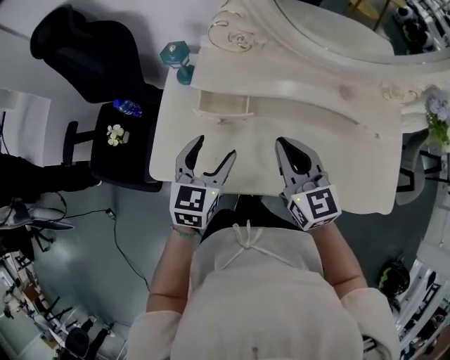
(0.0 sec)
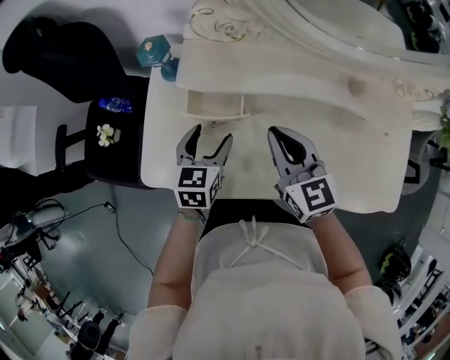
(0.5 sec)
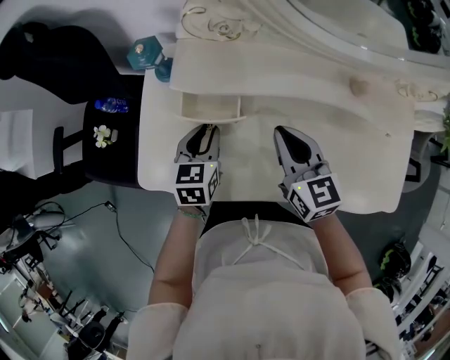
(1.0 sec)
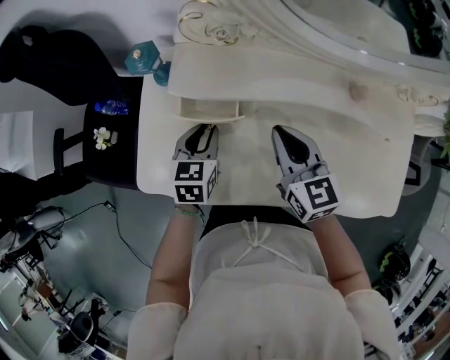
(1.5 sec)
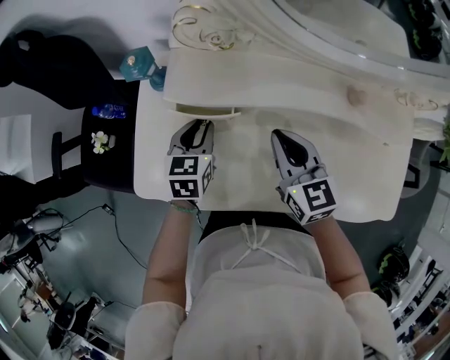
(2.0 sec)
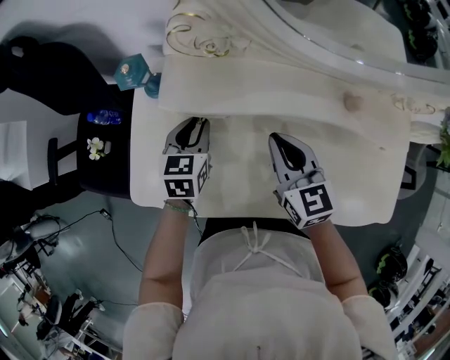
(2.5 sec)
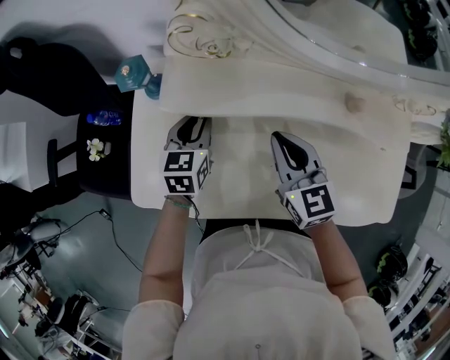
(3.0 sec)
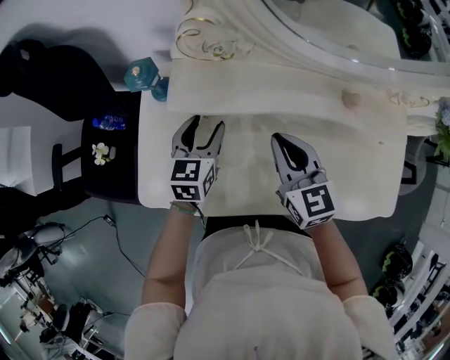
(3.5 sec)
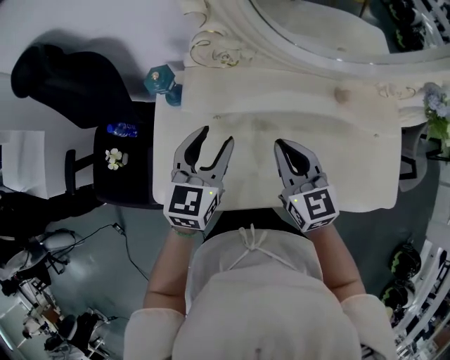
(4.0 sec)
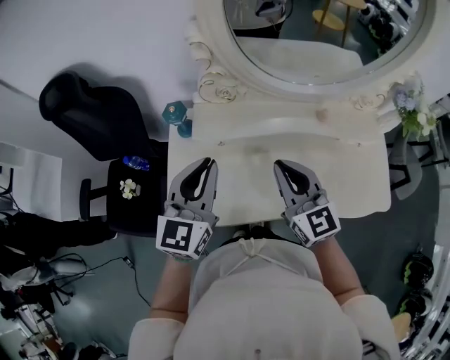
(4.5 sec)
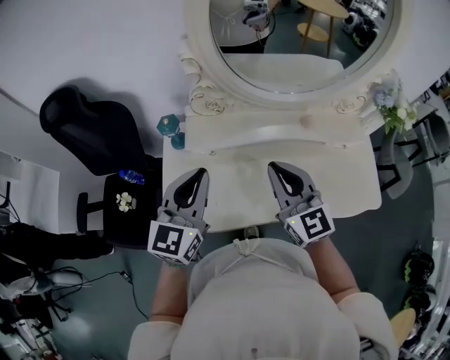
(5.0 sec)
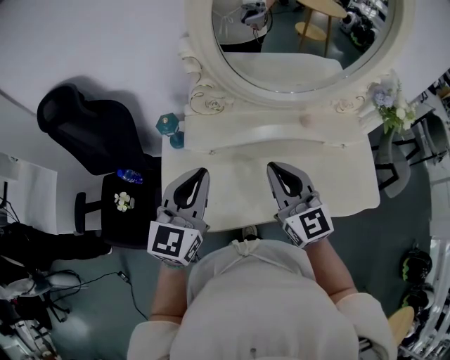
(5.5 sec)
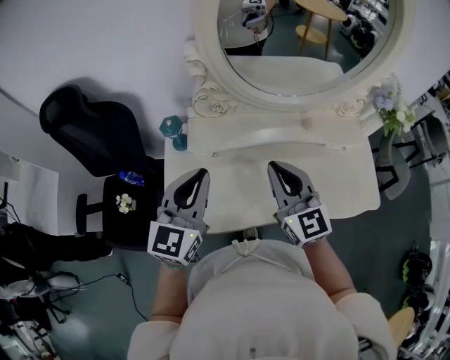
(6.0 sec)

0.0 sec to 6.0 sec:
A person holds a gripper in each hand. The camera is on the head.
0.0 sec to 2.0 sec: The left gripper is displaced forward and downward by about 15 cm, and closes. Meanwhile the right gripper travels downward and forward by some 10 cm.
2.0 sec to 4.0 sec: The left gripper travels upward by about 15 cm, turns by approximately 20 degrees, and opens up; the right gripper moves upward, about 5 cm.
4.0 sec to 6.0 sec: The left gripper goes about 20 cm upward and backward, and closes its fingers. The right gripper travels upward by roughly 15 cm.

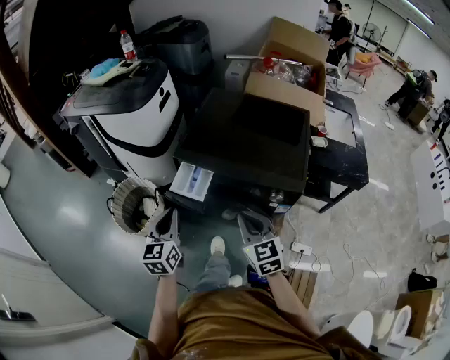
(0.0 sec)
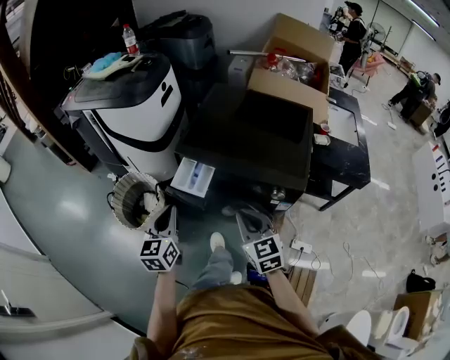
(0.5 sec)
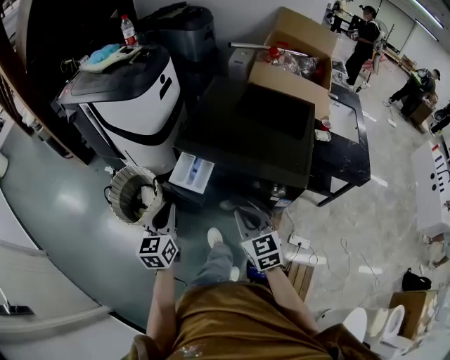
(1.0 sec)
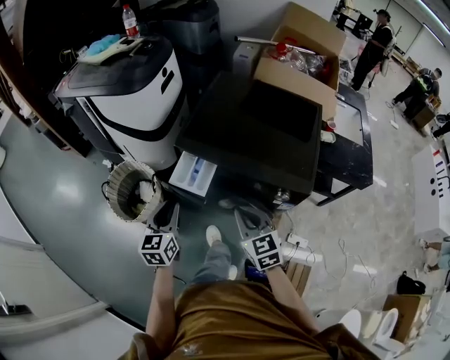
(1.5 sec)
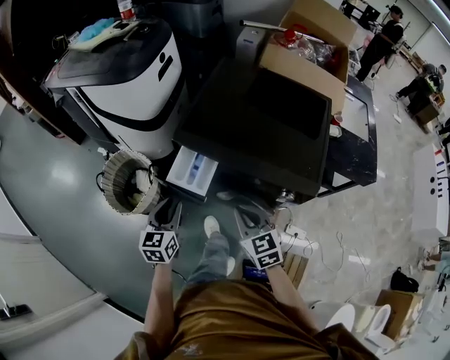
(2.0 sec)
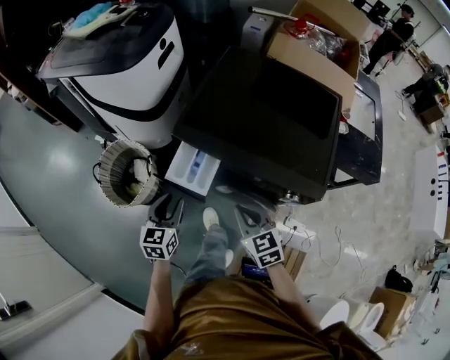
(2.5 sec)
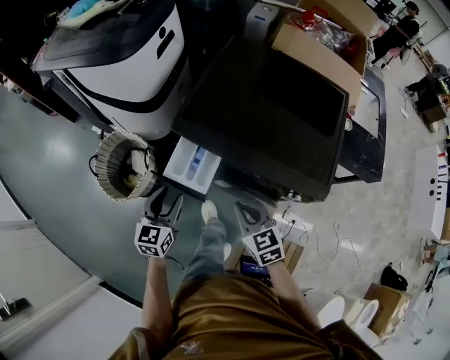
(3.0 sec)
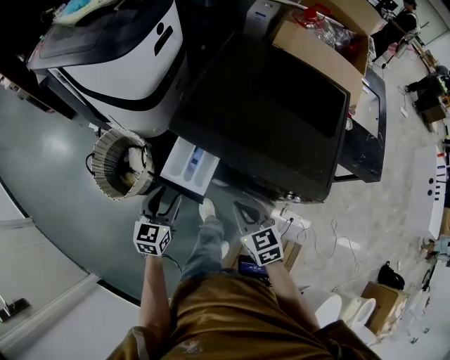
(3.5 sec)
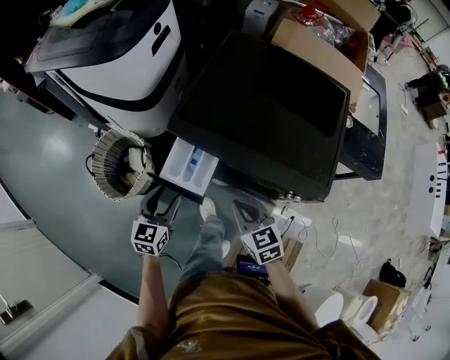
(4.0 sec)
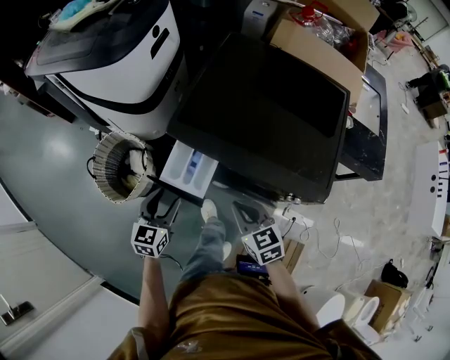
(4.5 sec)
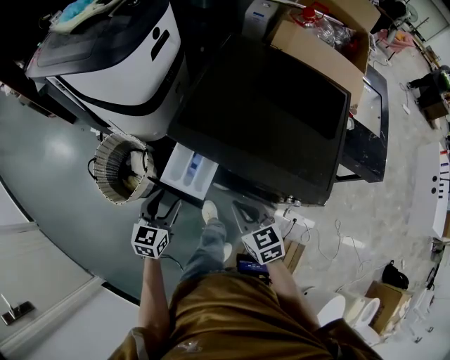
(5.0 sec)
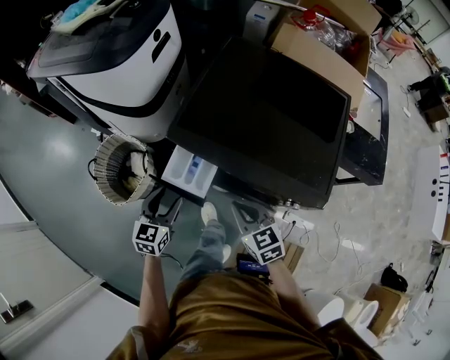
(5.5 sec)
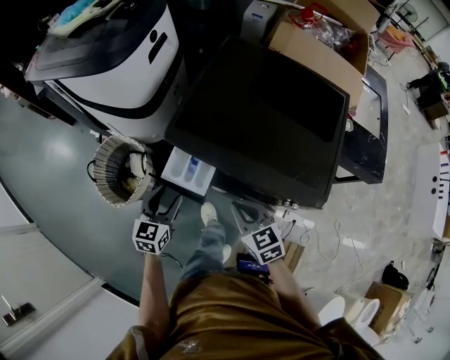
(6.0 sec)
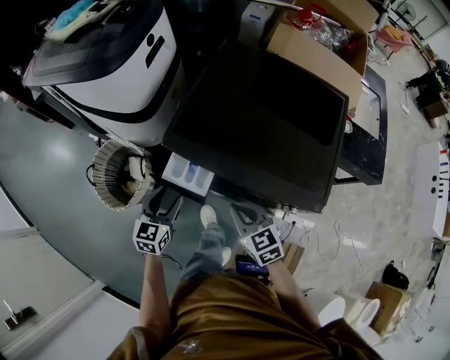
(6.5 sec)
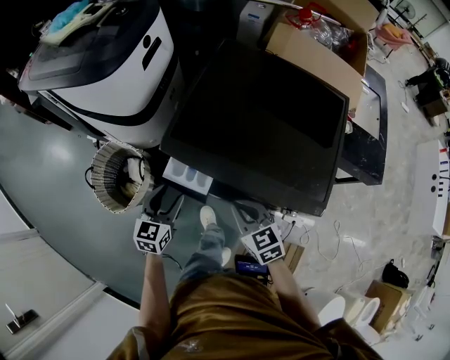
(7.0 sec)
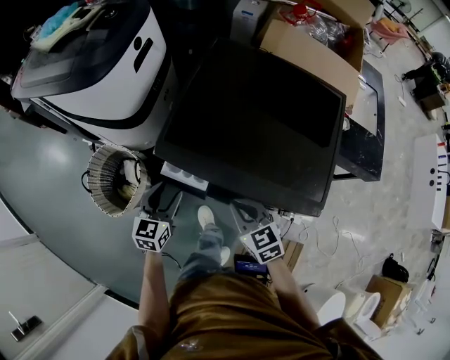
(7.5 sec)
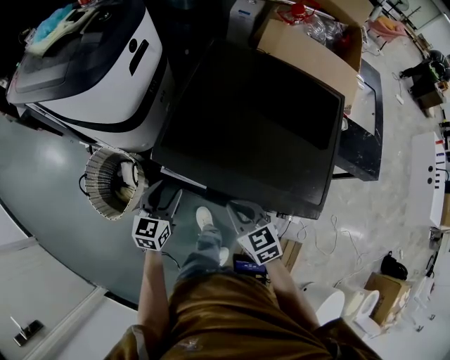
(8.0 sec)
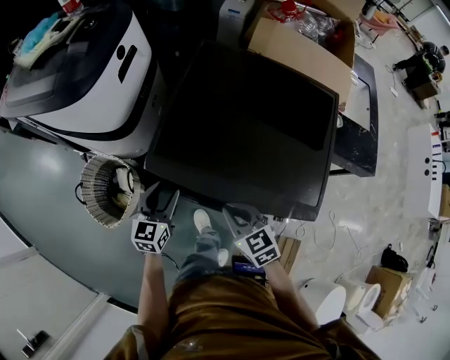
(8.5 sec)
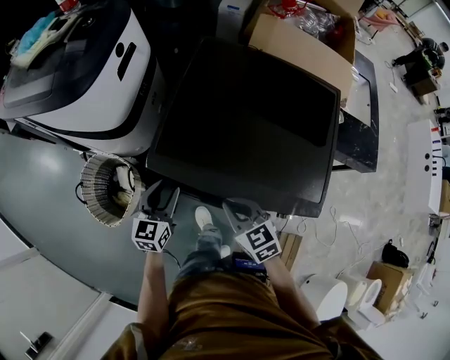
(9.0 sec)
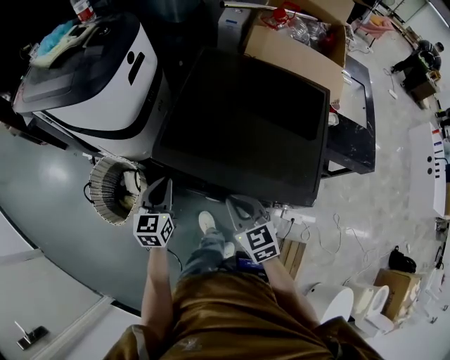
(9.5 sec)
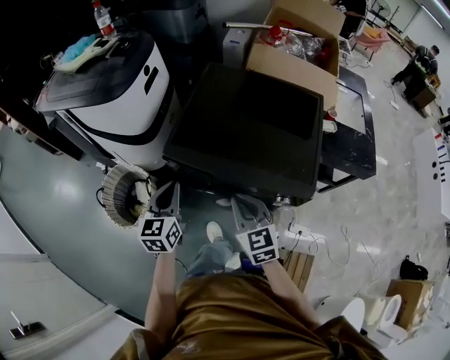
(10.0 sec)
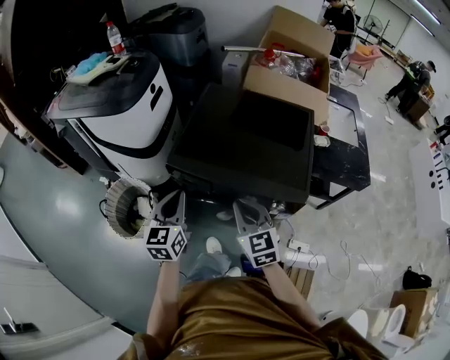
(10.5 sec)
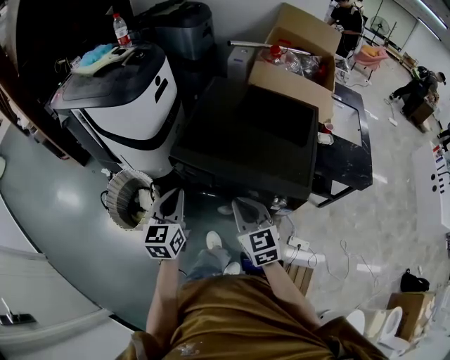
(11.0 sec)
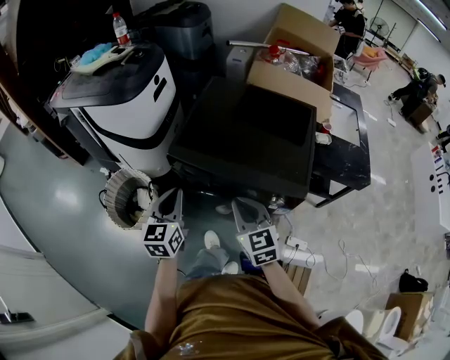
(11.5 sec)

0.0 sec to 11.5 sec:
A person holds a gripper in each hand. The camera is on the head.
0.0 sec to 2.0 sec: Both grippers travel together downward and forward, approximately 10 cm. The left gripper opens its fingers.
2.0 sec to 4.0 sec: The grippers both shift downward by some 5 cm. The left gripper opens.
4.0 sec to 6.0 sec: The grippers stay close to where they were, moving slightly.
6.0 sec to 7.5 sec: The left gripper heads forward, covering about 5 cm.
7.5 sec to 9.5 sec: Both grippers travel together upward, approximately 5 cm. The left gripper closes.
9.5 sec to 11.5 sec: The grippers both shift backward and upward by some 15 cm.

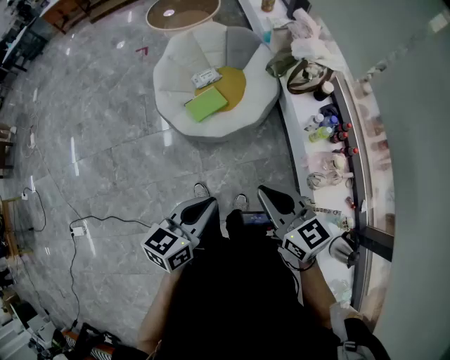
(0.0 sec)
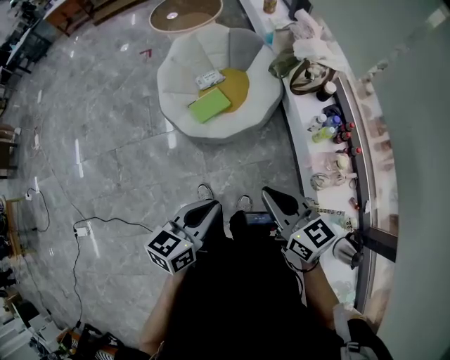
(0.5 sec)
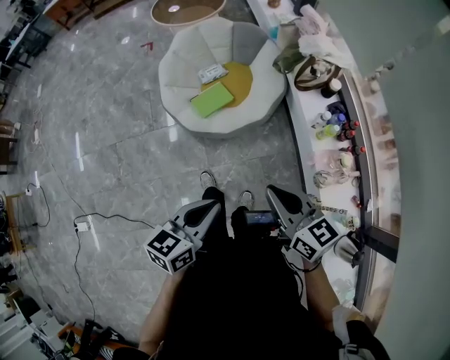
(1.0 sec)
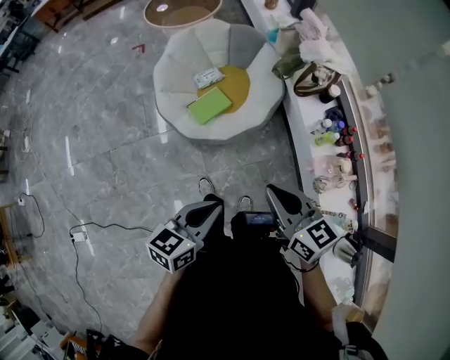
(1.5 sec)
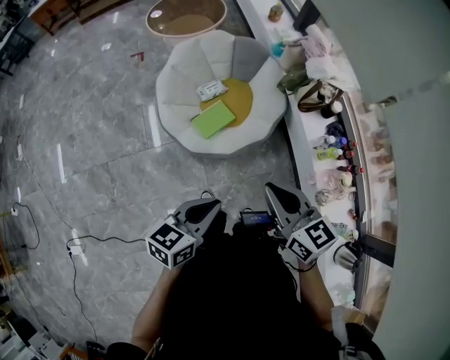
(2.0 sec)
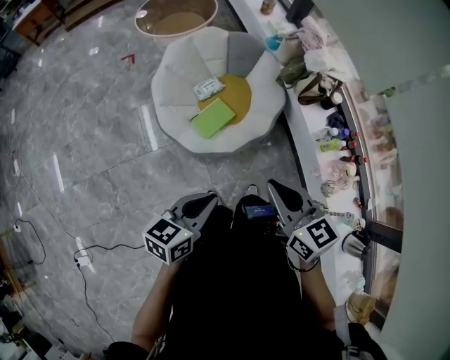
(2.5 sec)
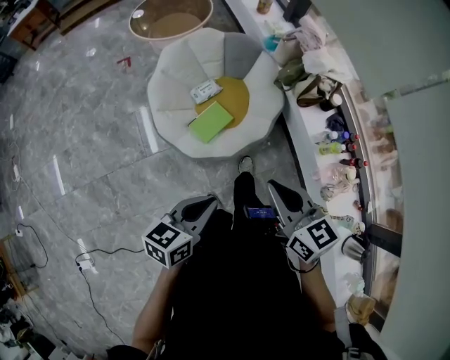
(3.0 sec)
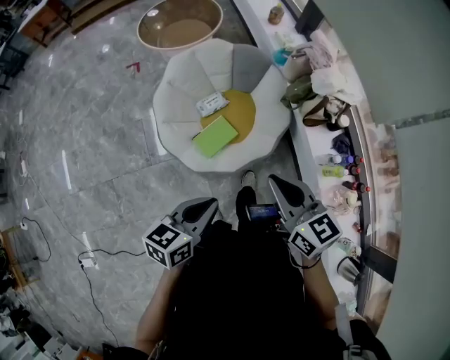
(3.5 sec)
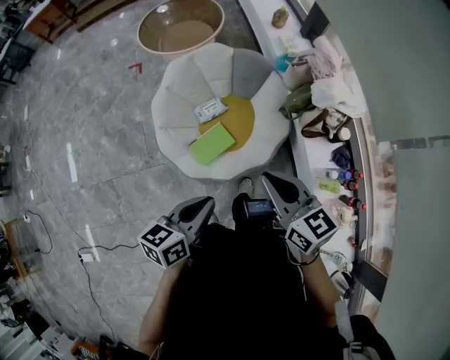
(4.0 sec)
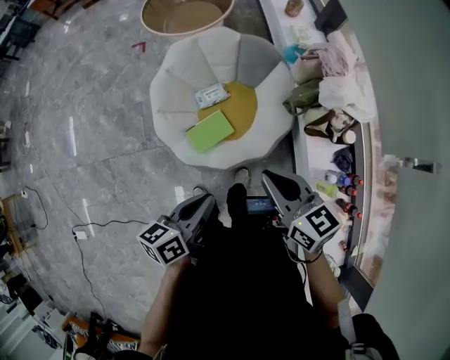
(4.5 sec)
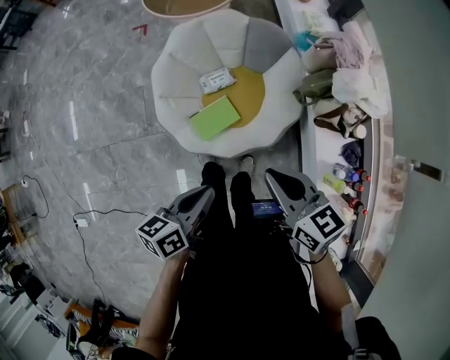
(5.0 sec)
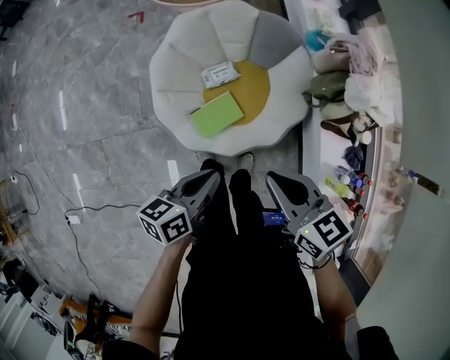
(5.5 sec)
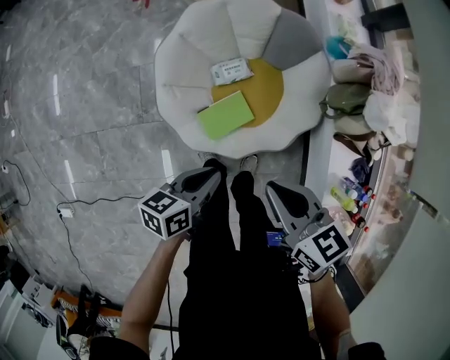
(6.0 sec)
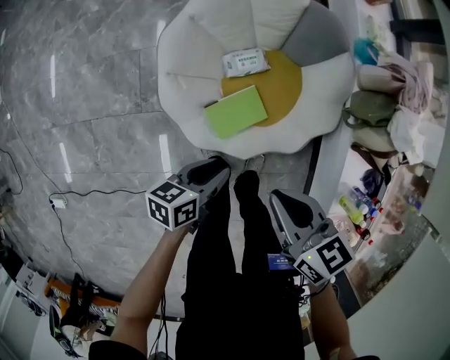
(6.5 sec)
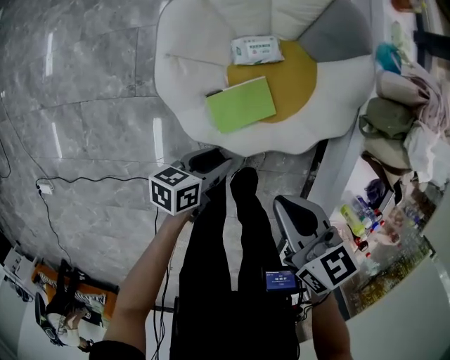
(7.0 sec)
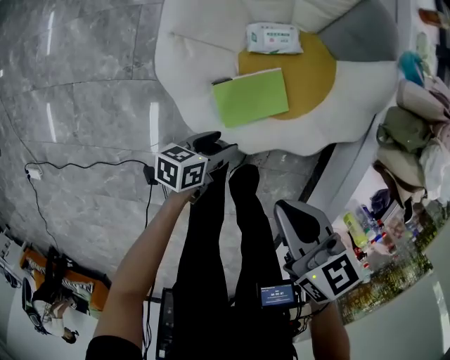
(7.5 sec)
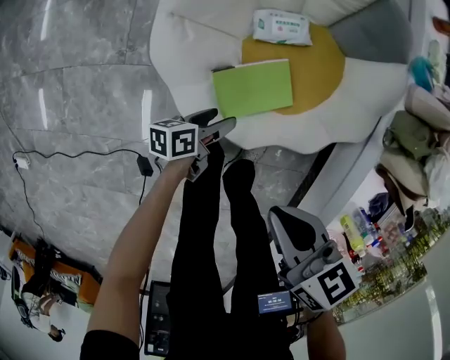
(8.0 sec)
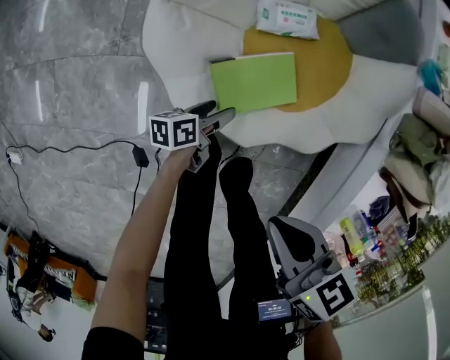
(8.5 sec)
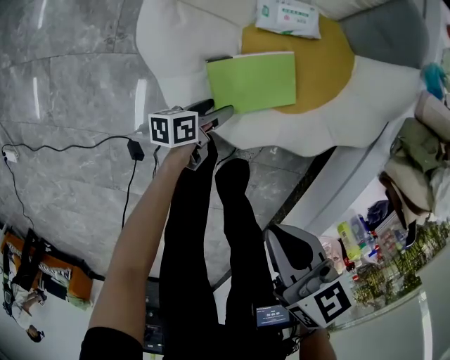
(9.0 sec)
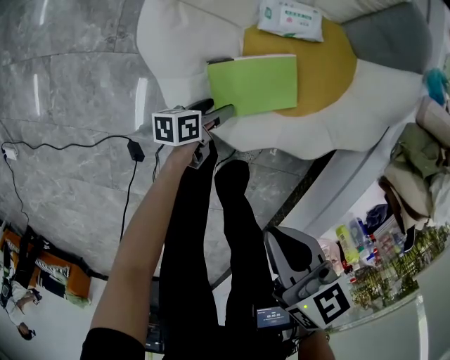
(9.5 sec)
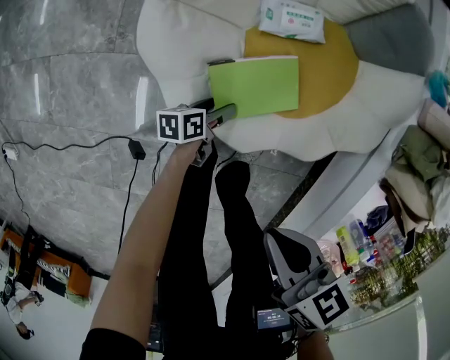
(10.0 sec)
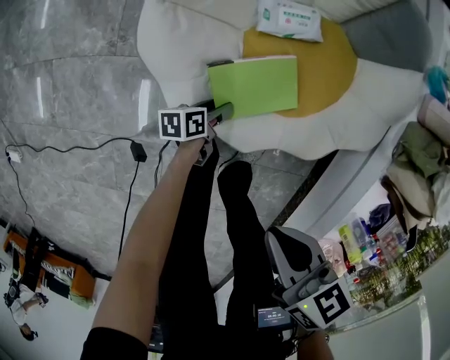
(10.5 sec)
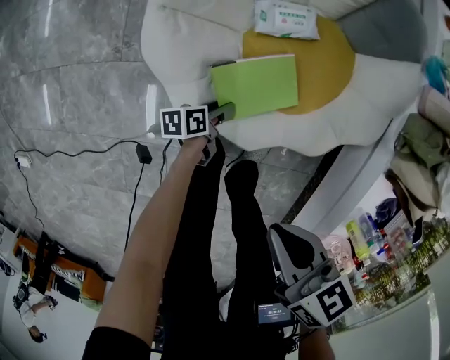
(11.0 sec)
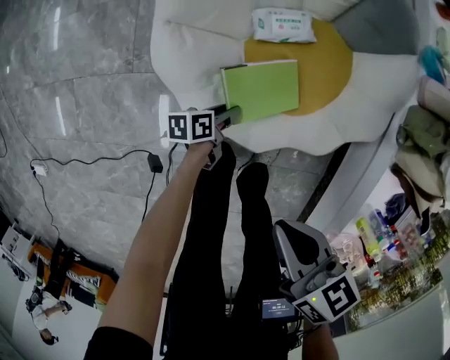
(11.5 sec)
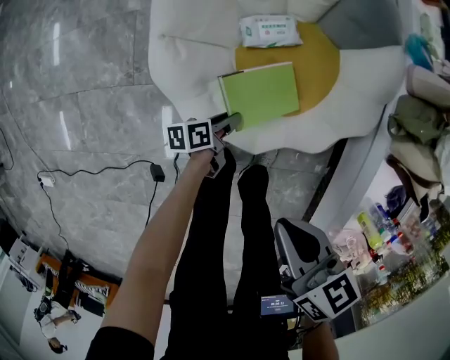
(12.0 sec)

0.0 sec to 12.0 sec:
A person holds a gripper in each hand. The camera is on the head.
0.0 sec to 2.0 sec: The right gripper moves roughly 15 cm.
2.0 sec to 4.0 sec: The right gripper changes place by approximately 25 cm.
4.0 sec to 6.0 sec: The right gripper changes place by roughly 20 cm, and swivels some 20 degrees.
6.0 sec to 8.0 sec: The right gripper moves downward, approximately 25 cm, and rotates roughly 20 degrees.
8.0 sec to 10.0 sec: The right gripper moves some 5 cm.
10.0 sec to 12.0 sec: The right gripper is displaced upward by some 5 cm.
